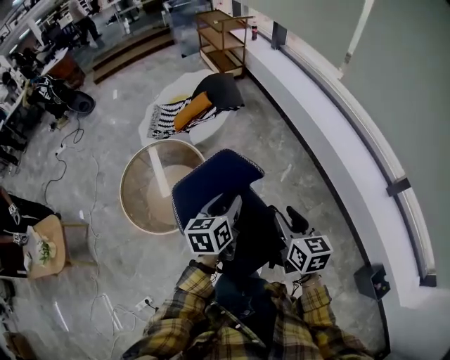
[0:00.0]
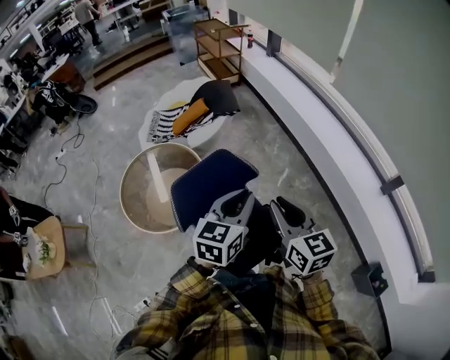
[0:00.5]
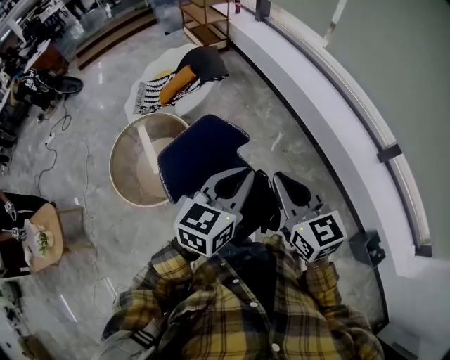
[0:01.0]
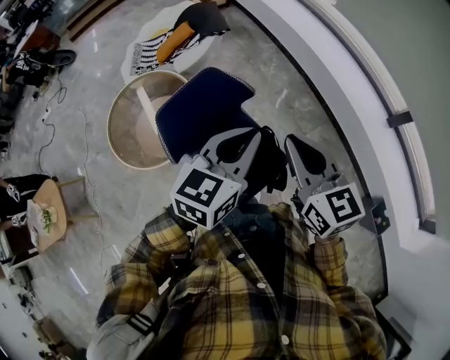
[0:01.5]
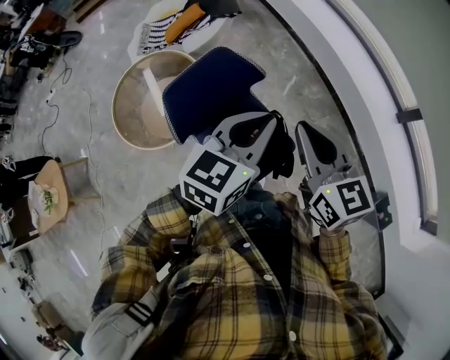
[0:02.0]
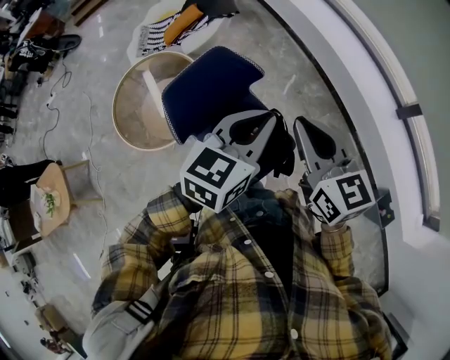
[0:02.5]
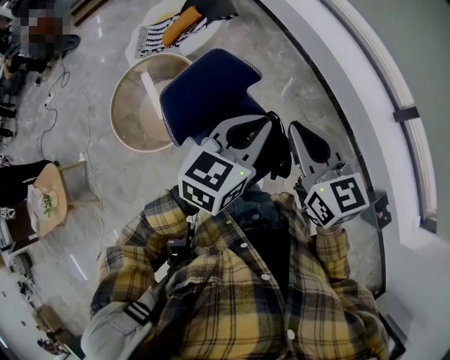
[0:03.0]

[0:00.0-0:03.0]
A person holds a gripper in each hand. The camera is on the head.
0:00.0 to 0:01.5: The right gripper moves upward and backward, approximately 15 cm, and closes up. The left gripper shifts some 20 cm upward, to the right and backward, turns by about 30 degrees, and closes.
0:01.5 to 0:03.0: The grippers stay close to where they were, moving slightly.

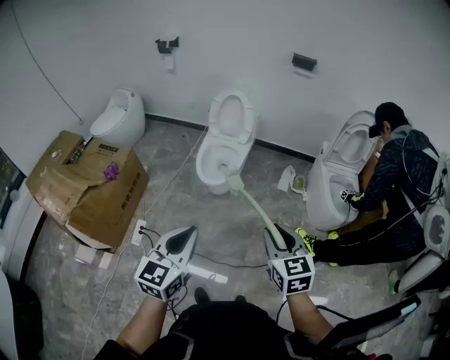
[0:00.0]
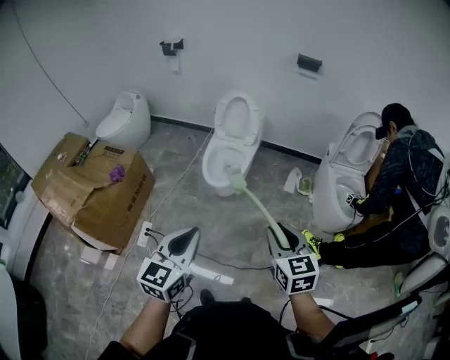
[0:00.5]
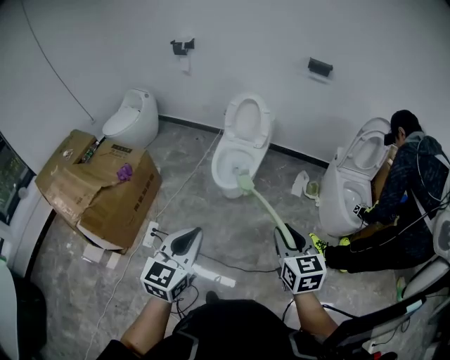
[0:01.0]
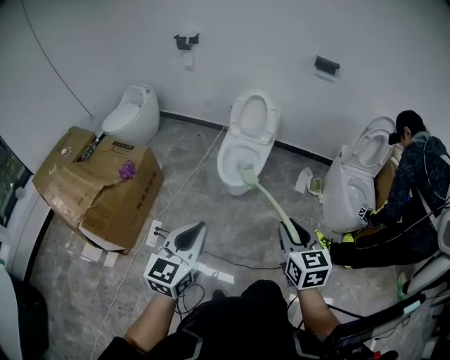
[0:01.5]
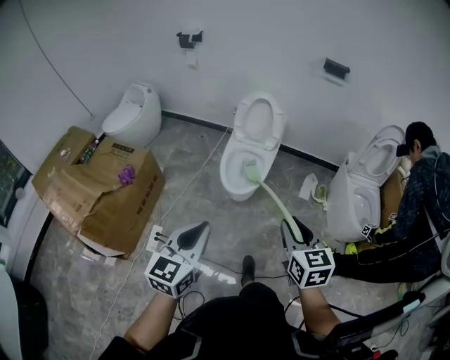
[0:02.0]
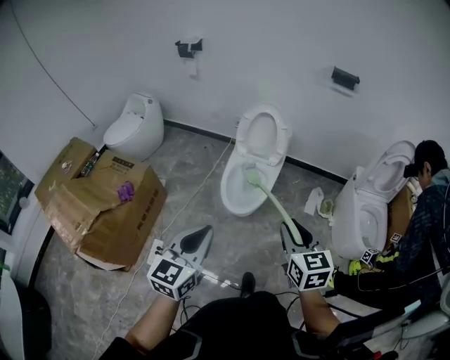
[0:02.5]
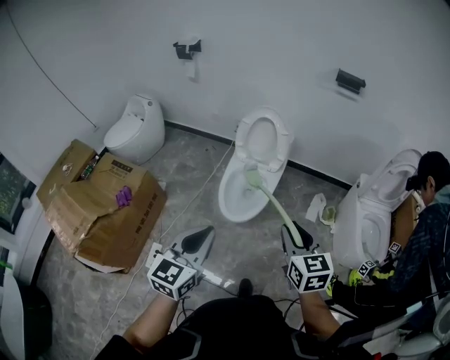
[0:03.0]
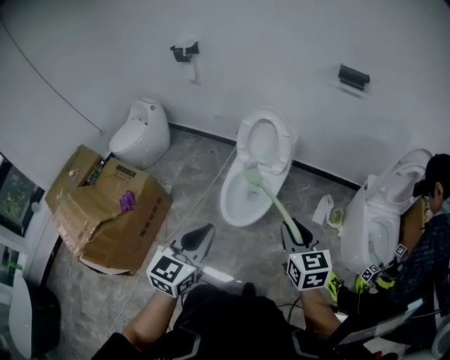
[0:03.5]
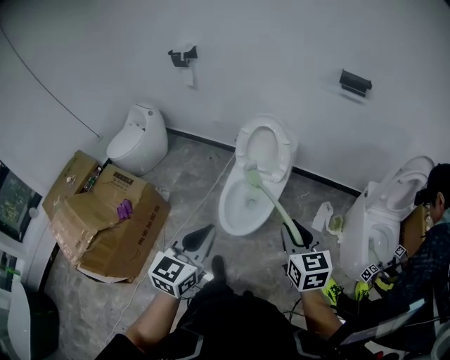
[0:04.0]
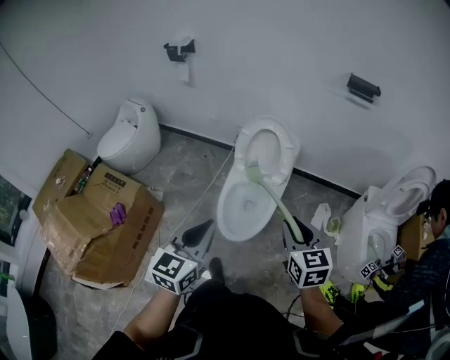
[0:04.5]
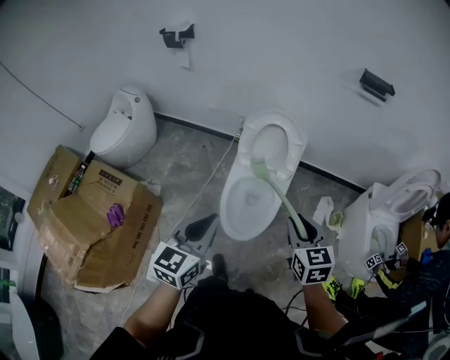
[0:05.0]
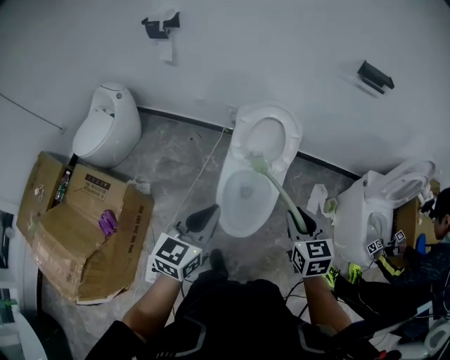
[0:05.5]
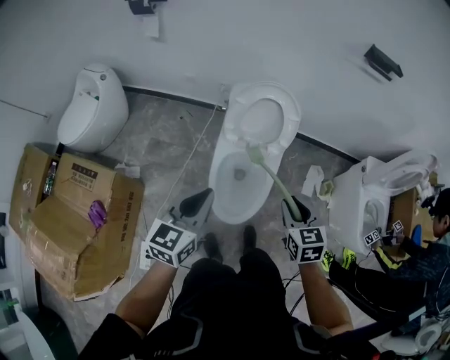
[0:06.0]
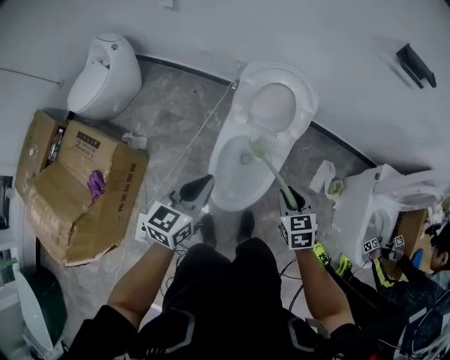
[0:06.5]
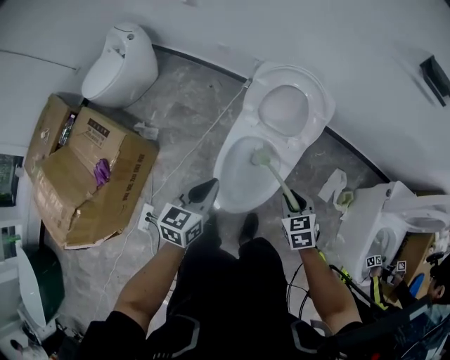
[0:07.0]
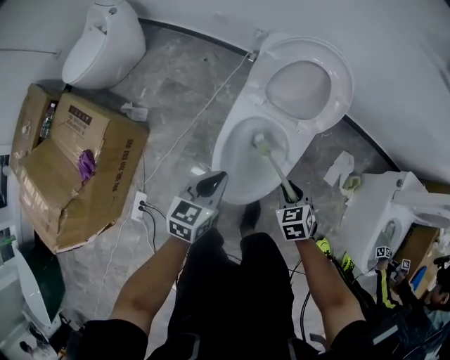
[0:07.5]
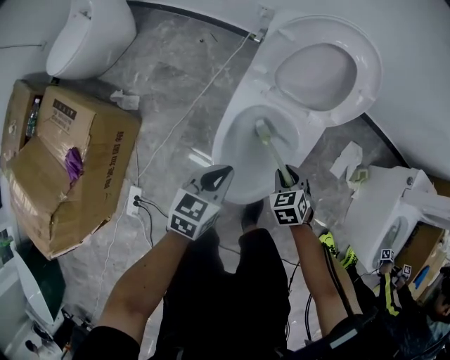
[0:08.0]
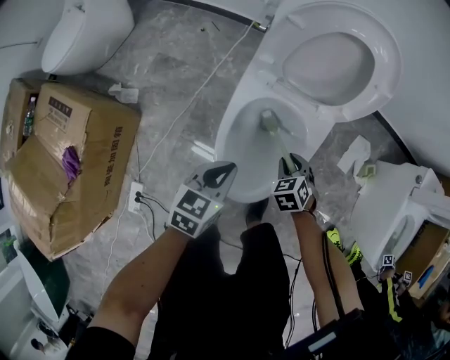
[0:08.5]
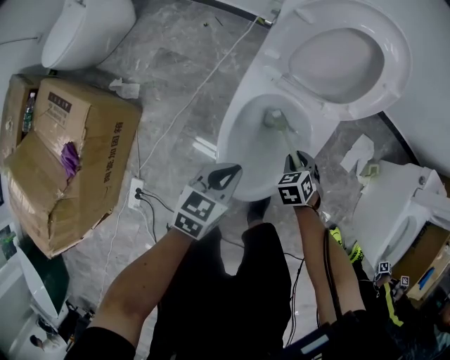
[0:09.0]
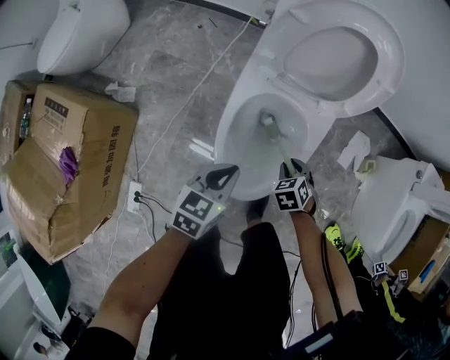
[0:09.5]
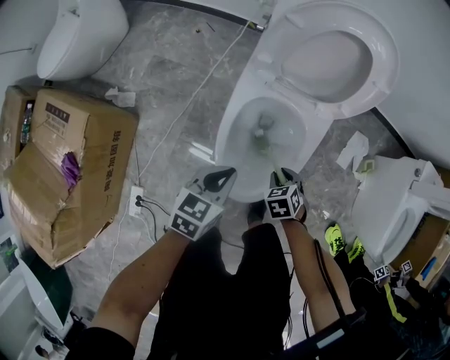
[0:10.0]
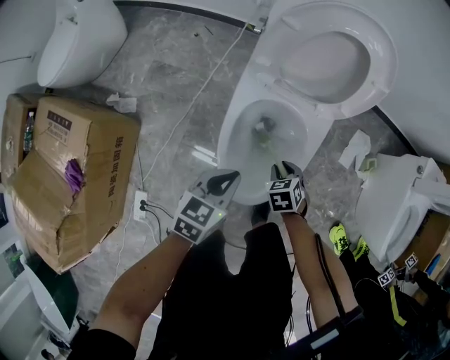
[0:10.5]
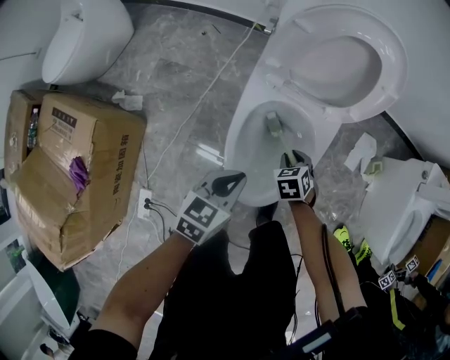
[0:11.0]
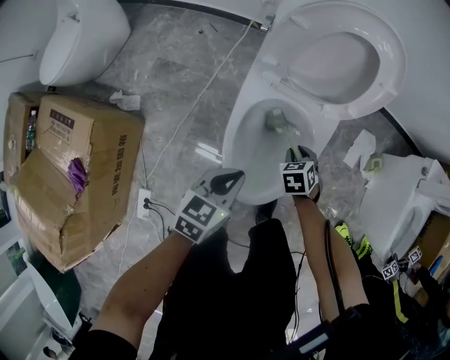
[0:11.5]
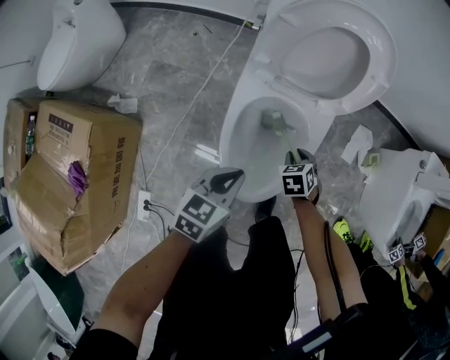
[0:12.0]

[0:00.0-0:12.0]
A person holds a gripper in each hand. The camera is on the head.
0:00.0 to 0:02.0: The left gripper moves to the left and forward, approximately 15 cm, while the right gripper moves forward and to the left, roughly 15 cm.
0:02.0 to 0:04.0: Both grippers travel together forward, about 30 cm.
0:04.0 to 0:06.0: The right gripper travels forward, downward and to the left by roughly 25 cm. Meanwhile the left gripper travels forward and to the left by approximately 30 cm.
0:06.0 to 0:08.0: Both grippers travel together downward, roughly 35 cm. The right gripper changes its angle by about 30 degrees. Meanwhile the left gripper rotates about 20 degrees.
0:08.0 to 0:10.0: The right gripper travels downward by about 5 cm.
0:10.0 to 0:12.0: The right gripper shifts roughly 10 cm forward.

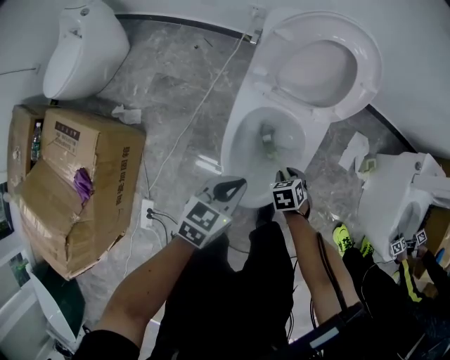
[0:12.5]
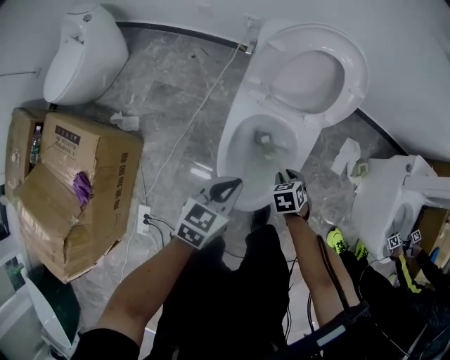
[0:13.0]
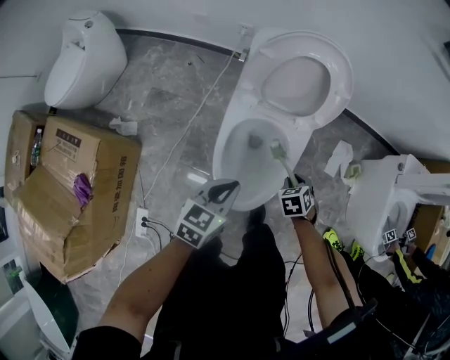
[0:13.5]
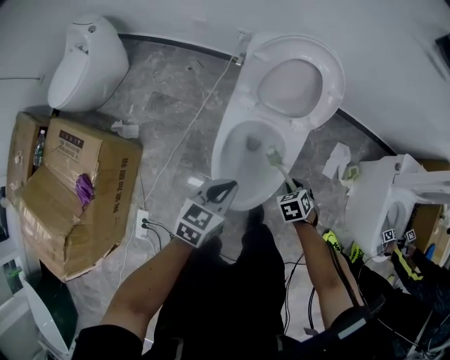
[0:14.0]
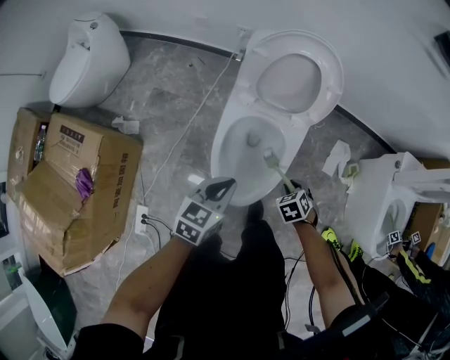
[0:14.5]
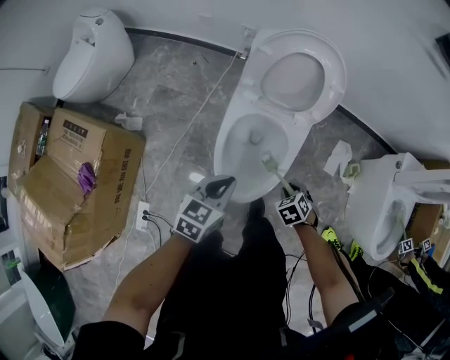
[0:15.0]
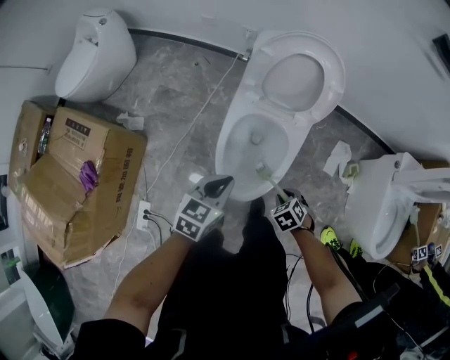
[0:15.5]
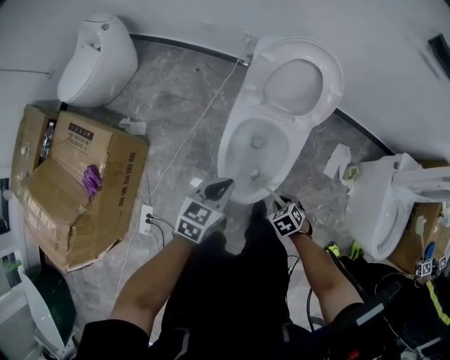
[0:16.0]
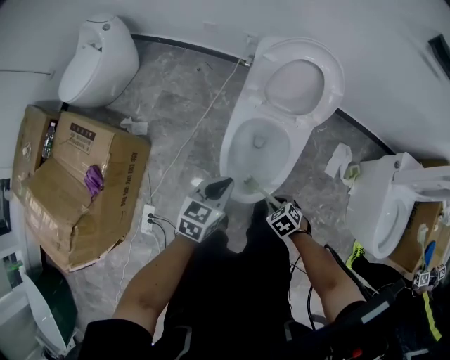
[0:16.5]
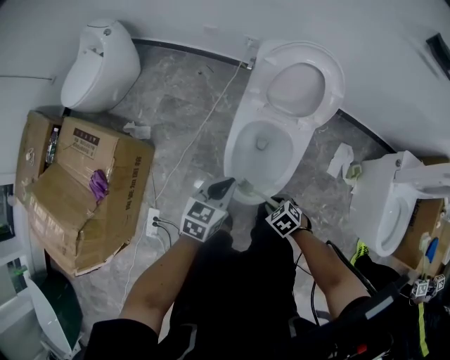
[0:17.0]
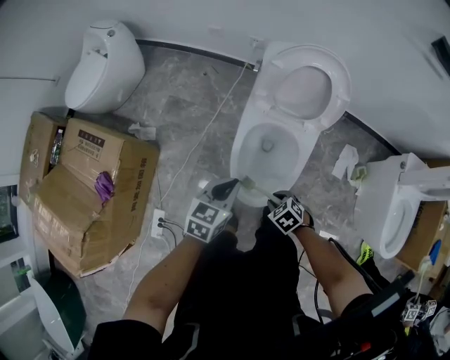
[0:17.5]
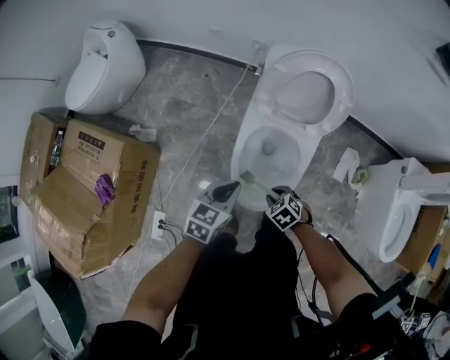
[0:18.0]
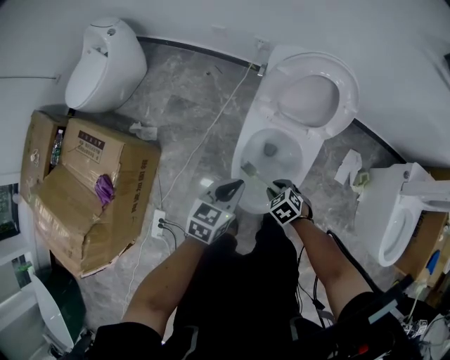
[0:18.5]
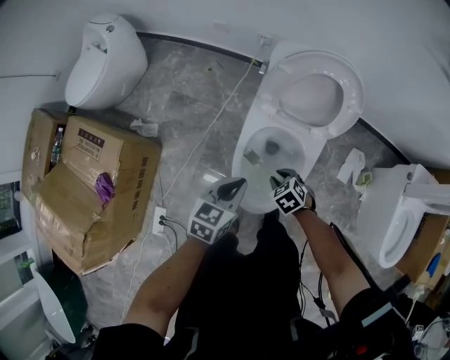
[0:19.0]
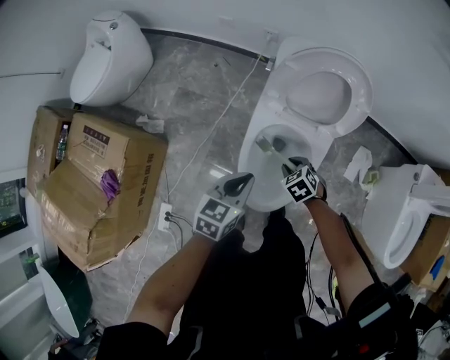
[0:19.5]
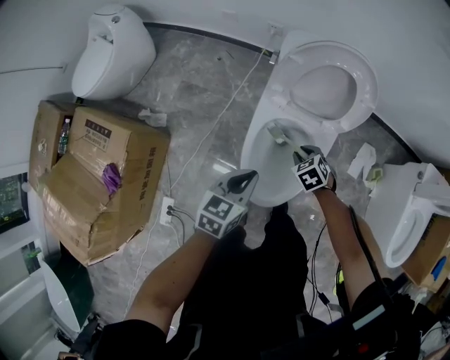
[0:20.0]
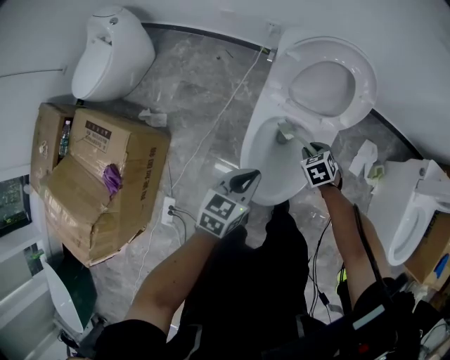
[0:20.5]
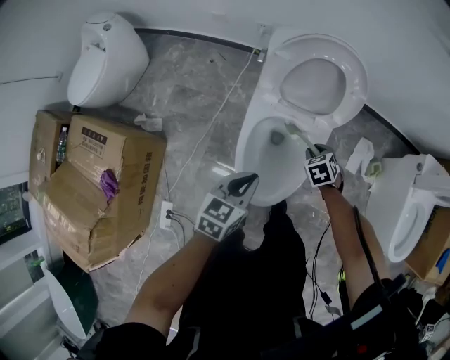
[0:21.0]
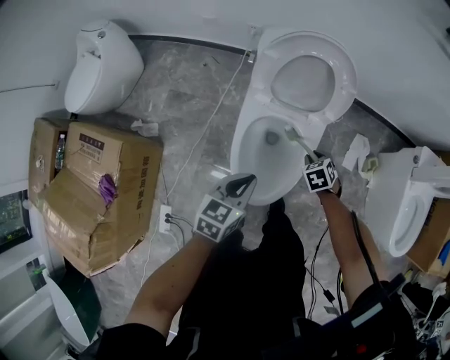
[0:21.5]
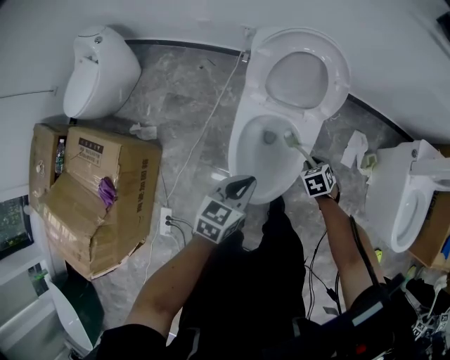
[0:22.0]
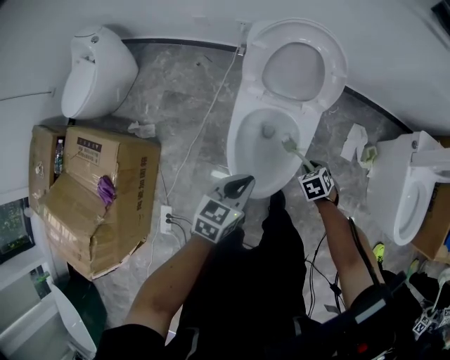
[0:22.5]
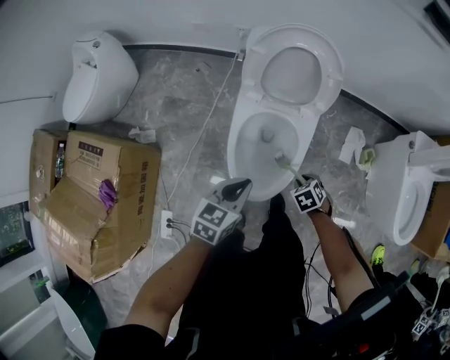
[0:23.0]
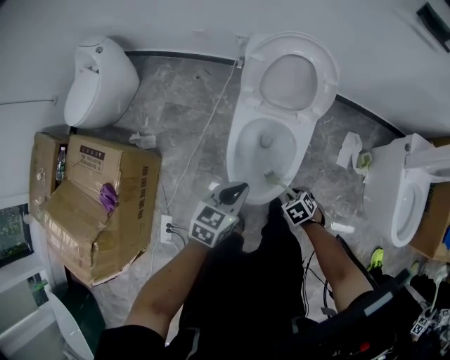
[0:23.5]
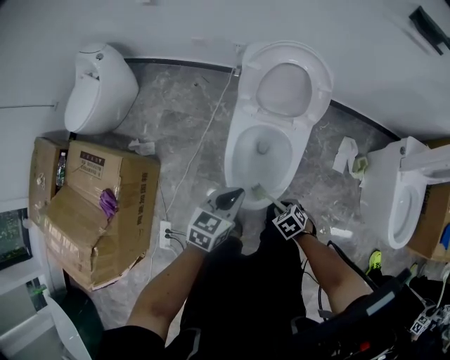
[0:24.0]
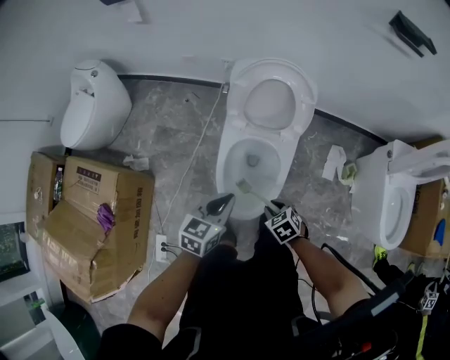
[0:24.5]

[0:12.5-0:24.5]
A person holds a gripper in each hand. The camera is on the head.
0:12.5 to 0:14.5: The right gripper is displaced to the right and upward by about 10 cm. Meanwhile the left gripper shifts roughly 5 cm upward.
0:14.5 to 0:16.5: The right gripper moves approximately 10 cm.
0:16.5 to 0:18.5: The right gripper moves some 15 cm; the left gripper moves approximately 5 cm.
0:18.5 to 0:20.5: The right gripper heads forward and to the right, covering some 15 cm.
0:20.5 to 0:22.5: The left gripper shifts roughly 5 cm to the right, while the right gripper moves to the right and backward, approximately 15 cm.
0:22.5 to 0:24.5: The right gripper changes place by about 15 cm. Meanwhile the left gripper moves upward, about 5 cm.
